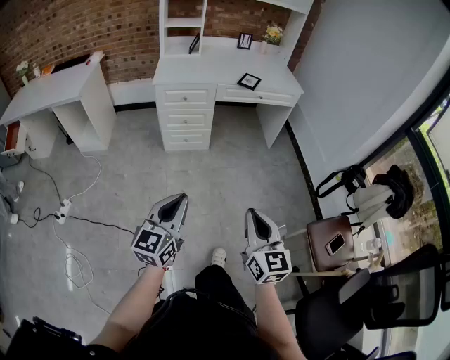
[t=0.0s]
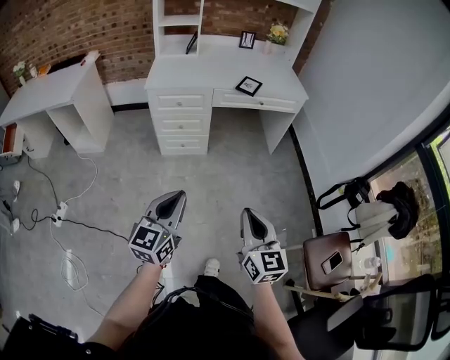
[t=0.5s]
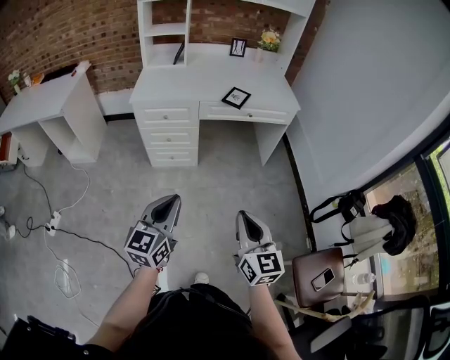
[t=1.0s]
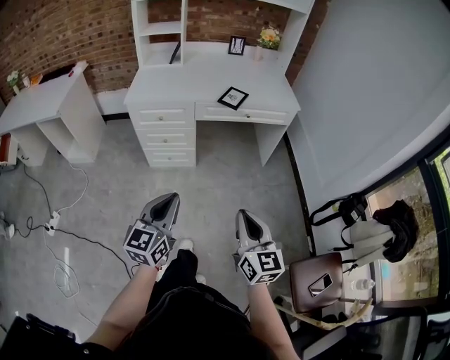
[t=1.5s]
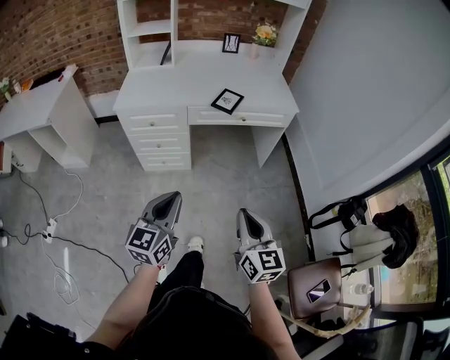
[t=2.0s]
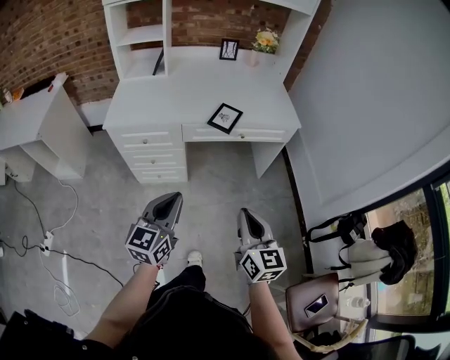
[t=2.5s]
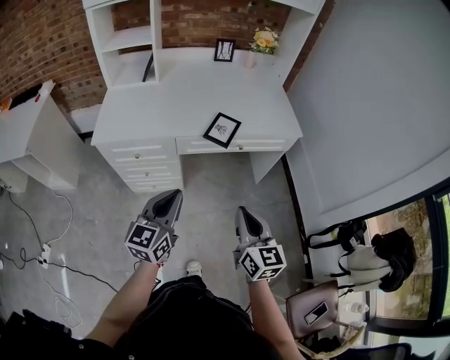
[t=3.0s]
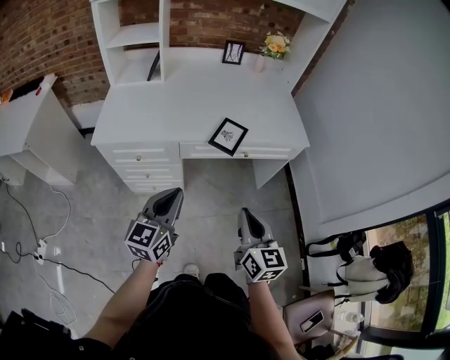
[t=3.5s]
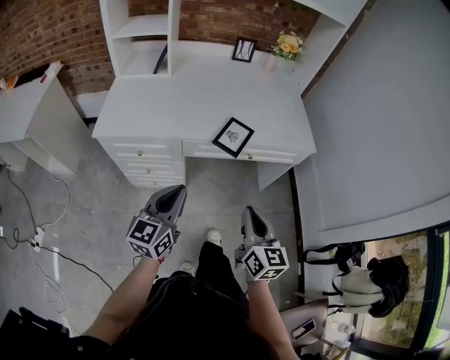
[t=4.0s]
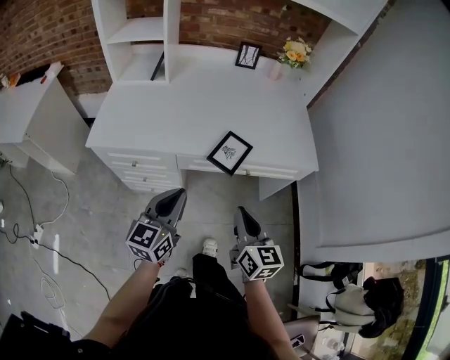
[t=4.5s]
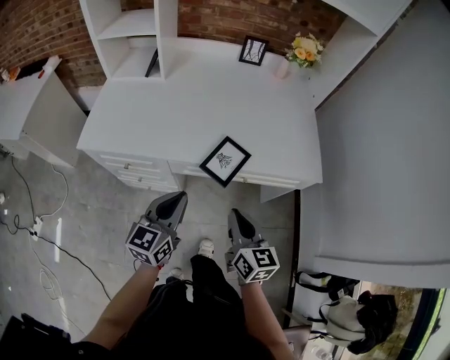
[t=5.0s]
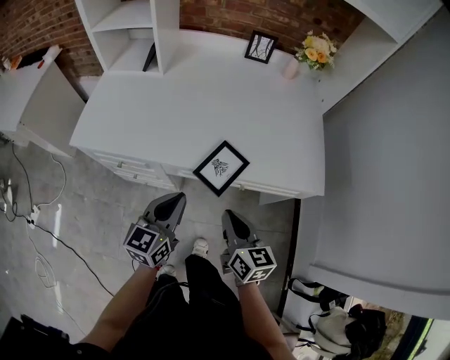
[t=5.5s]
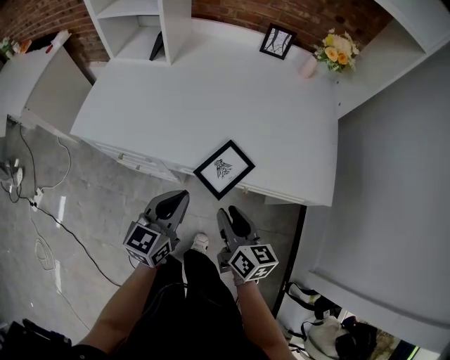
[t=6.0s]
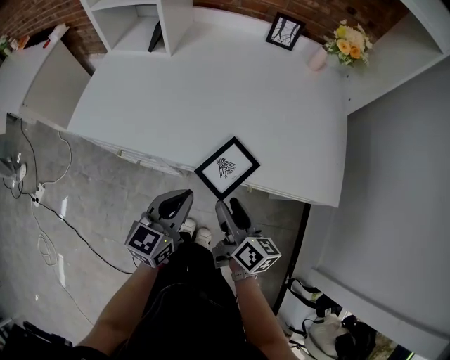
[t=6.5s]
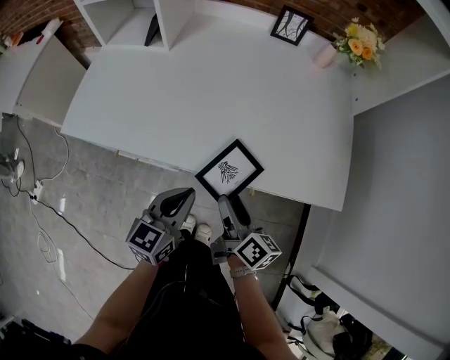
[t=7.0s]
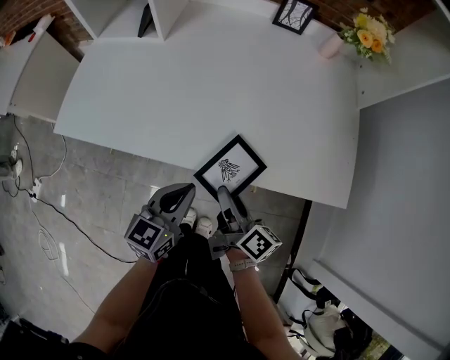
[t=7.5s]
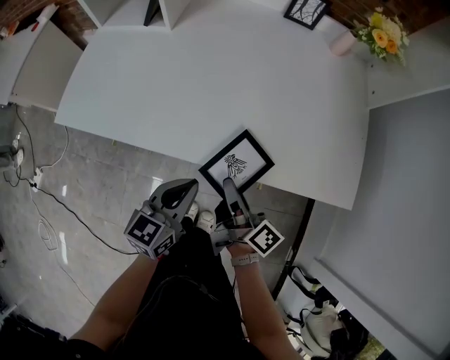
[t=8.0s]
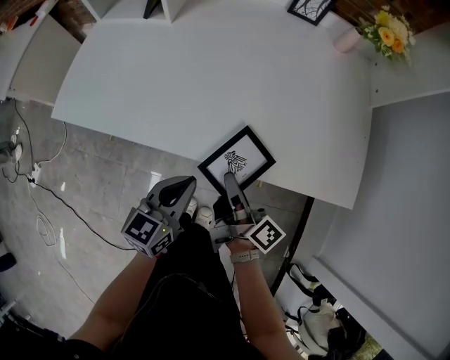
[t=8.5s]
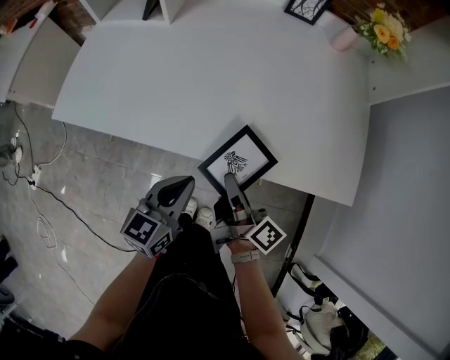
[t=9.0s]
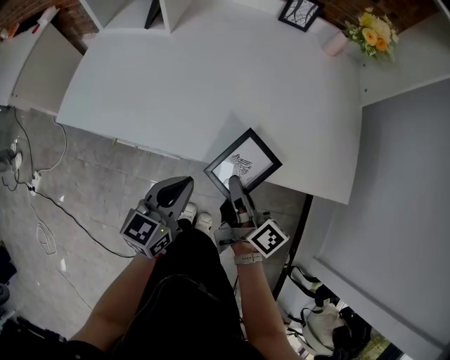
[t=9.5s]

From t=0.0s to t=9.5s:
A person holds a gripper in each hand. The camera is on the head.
From t=0.0s to t=2.0s: Both grippers move forward and to the right, roughly 30 cm.
From t=2.0s to t=4.0s: The two grippers go approximately 25 cm forward.
From t=4.0s to t=5.5s: The right gripper is displaced forward by about 15 cm, and rotates some 20 degrees, while the left gripper travels forward and to the right by some 15 cm.
From t=5.5s to t=7.5s: The right gripper is displaced forward and downward by about 10 cm, twists approximately 40 degrees clockwise, seen from behind, and opens up. Meanwhile the left gripper shifts roughly 10 cm downward and forward.
From t=7.5s to t=9.5s: The right gripper closes up.

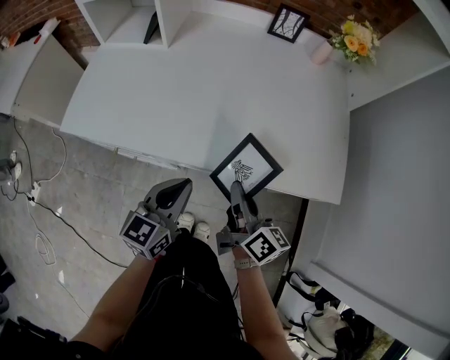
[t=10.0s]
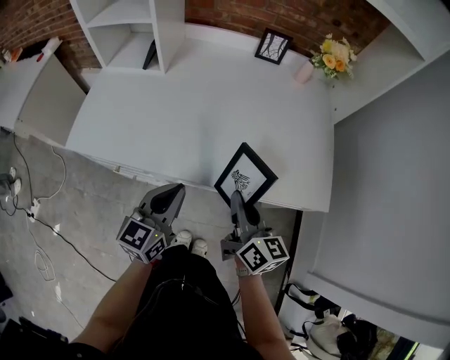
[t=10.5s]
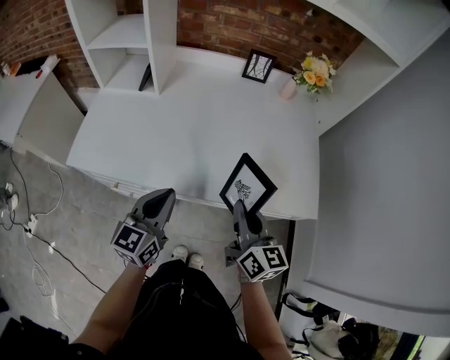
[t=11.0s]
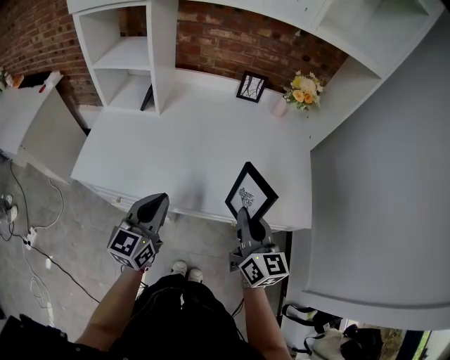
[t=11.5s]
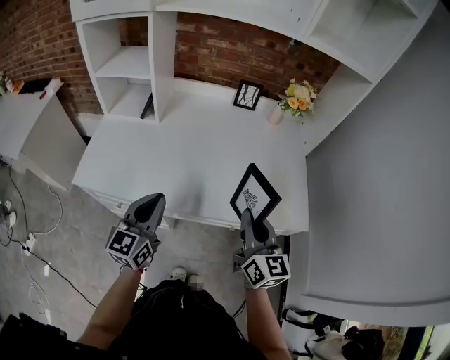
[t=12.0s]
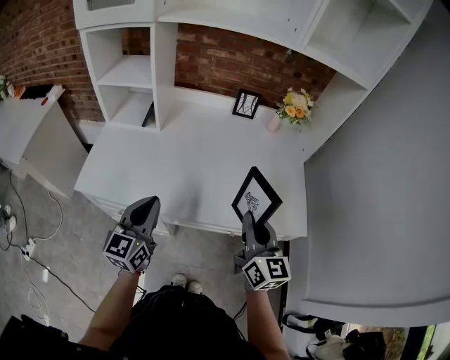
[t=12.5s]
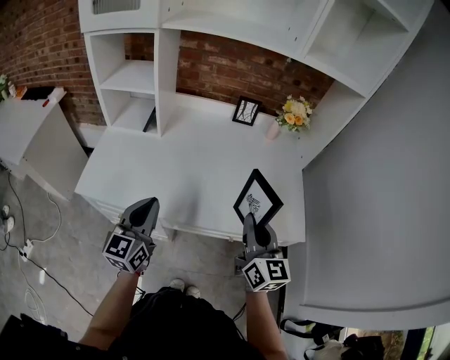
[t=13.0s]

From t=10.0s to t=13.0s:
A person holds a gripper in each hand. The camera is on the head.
From t=10.0s to t=11.5s: The right gripper travels upward by about 10 cm, and swivels some 30 degrees; the left gripper shifts roughly 10 cm upward and to the left.
From t=11.5s to t=13.0s: The left gripper shifts by some 5 cm.

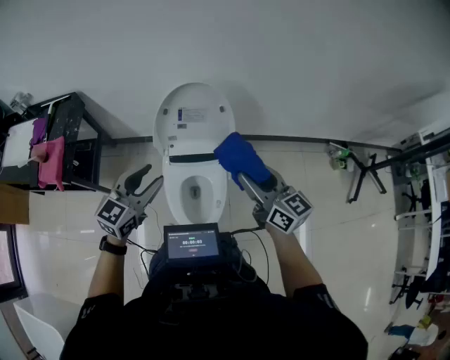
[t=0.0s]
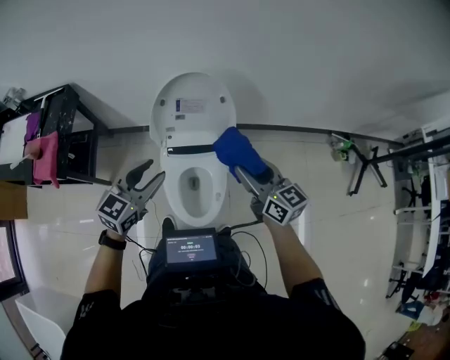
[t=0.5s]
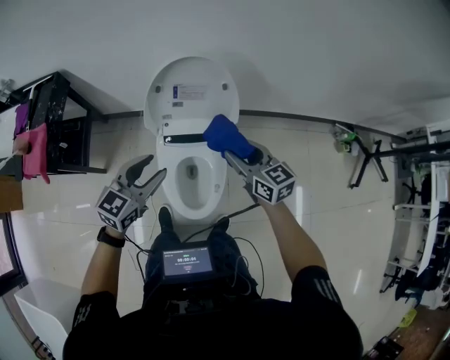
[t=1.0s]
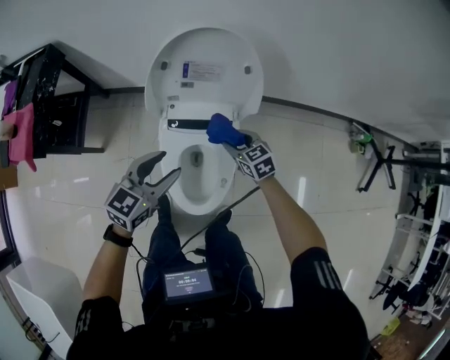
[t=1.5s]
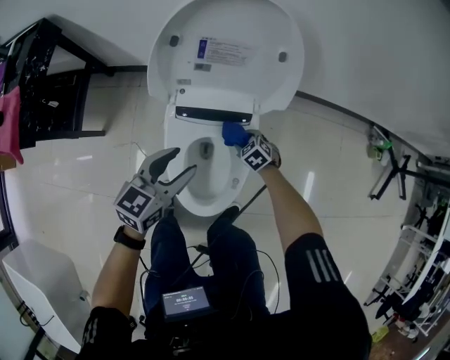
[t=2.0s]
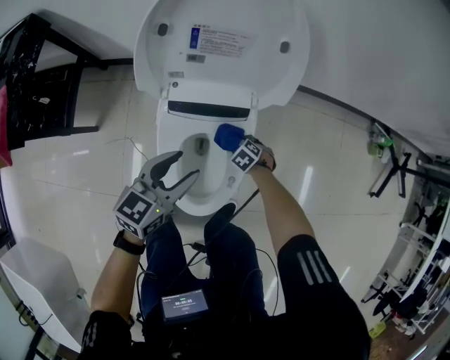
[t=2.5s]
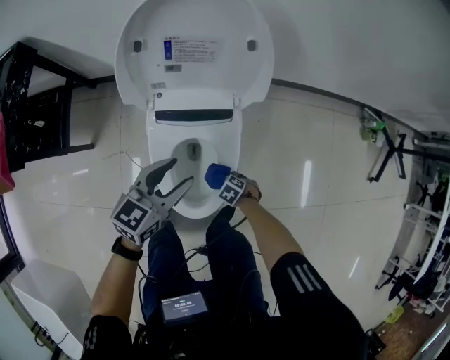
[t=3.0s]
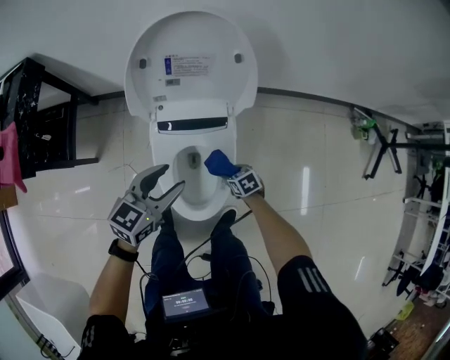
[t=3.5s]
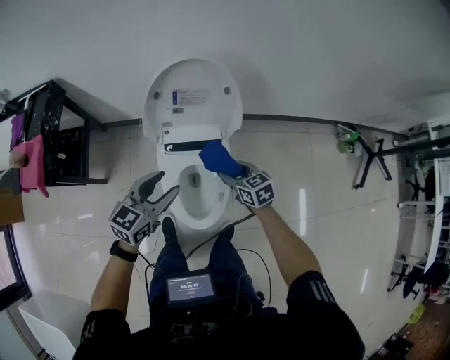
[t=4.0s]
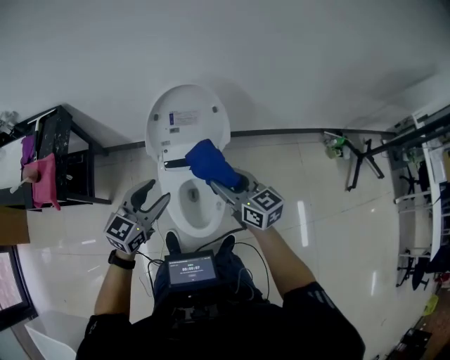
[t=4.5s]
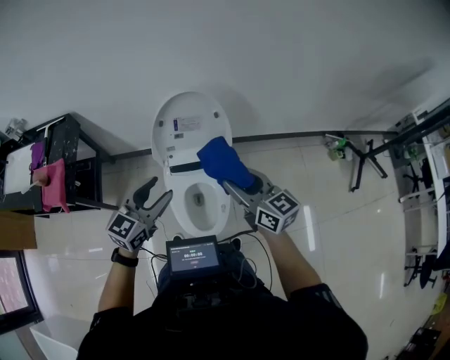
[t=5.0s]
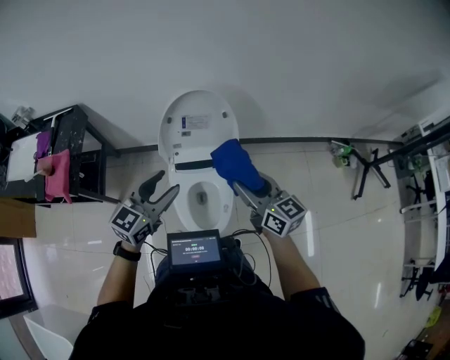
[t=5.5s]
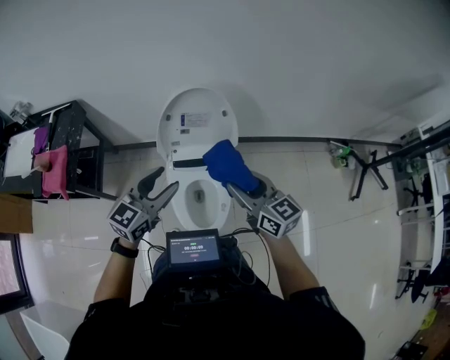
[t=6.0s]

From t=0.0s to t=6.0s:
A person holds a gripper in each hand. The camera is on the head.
From t=0.0s to t=2.0s: The right gripper heads downward, covering approximately 60 cm, and angles its fingers downward, by approximately 60 degrees; the left gripper shifts some 30 cm downward, and turns by roughly 20 degrees.
From t=2.0s to t=4.0s: The left gripper goes approximately 15 cm upward. Meanwhile the right gripper moves upward, some 30 cm, and turns by approximately 40 degrees.
From t=4.0s to t=6.0s: The left gripper moves upward, approximately 15 cm, while the right gripper travels upward by approximately 30 cm, and changes its angle by roughly 30 degrees.

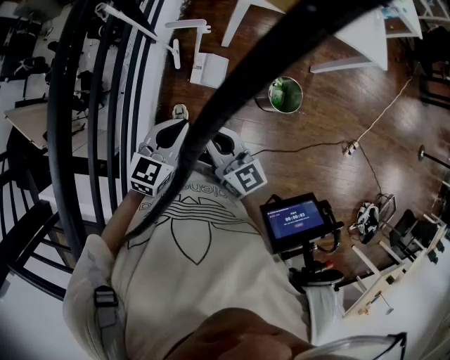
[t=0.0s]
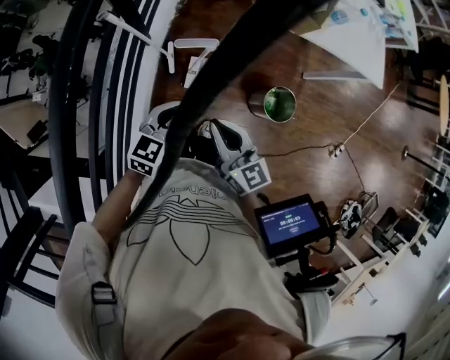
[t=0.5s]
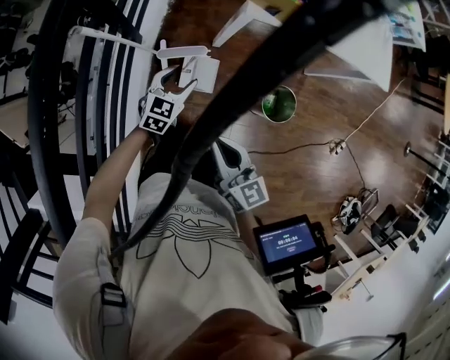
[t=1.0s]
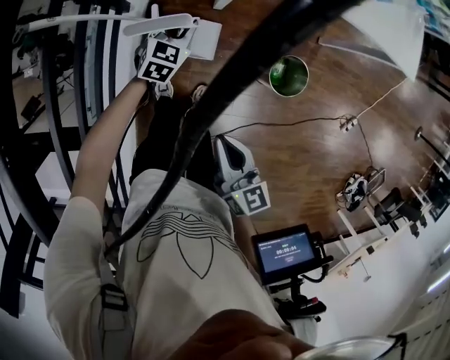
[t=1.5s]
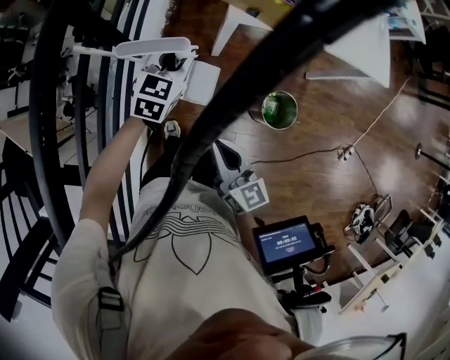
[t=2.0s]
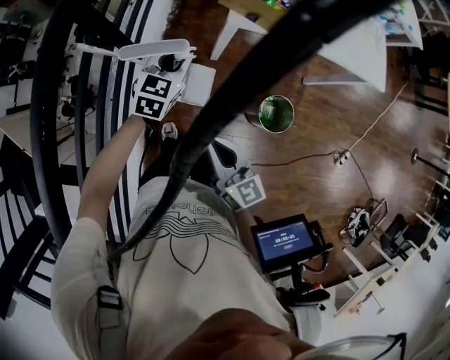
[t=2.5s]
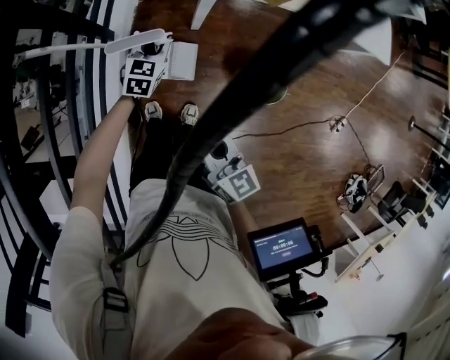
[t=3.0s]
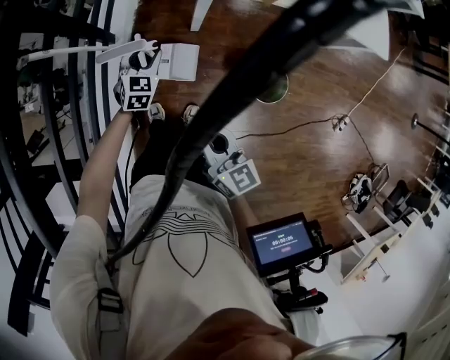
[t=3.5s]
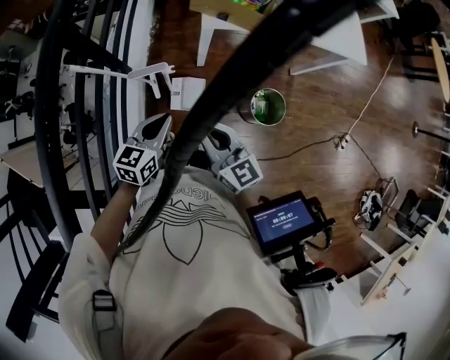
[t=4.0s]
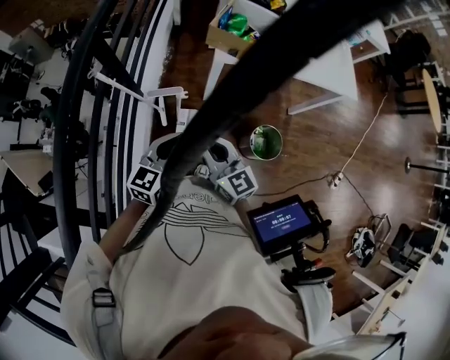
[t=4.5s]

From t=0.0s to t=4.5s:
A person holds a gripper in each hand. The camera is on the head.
From t=0.0s to t=2.0s: The left gripper heads forward, covering roughly 20 cm, and opens and closes again.
From t=2.0s to t=4.5s: The left gripper shifts roughly 20 cm backward, goes downward and returns, some 15 cm each way, changes its angle by roughly 20 degrees, and opens and closes again, while the right gripper changes place by some 5 cm.

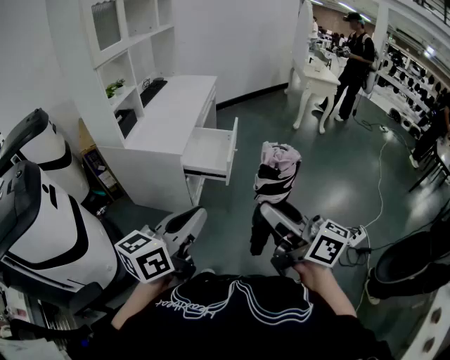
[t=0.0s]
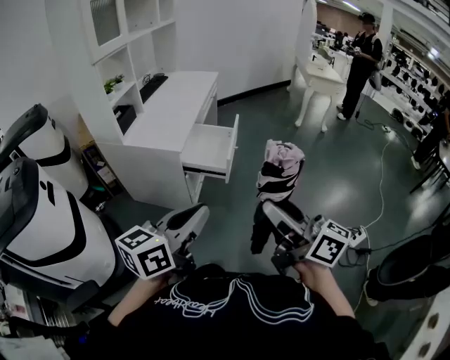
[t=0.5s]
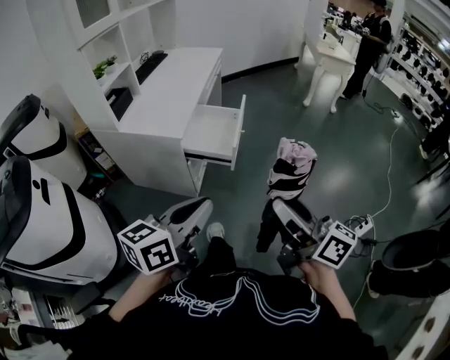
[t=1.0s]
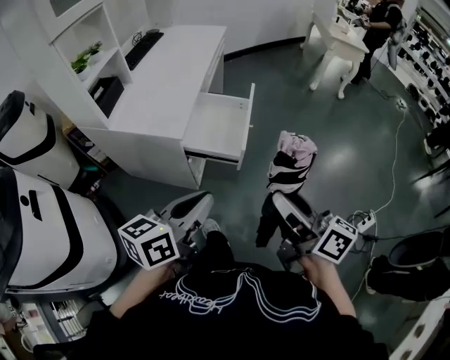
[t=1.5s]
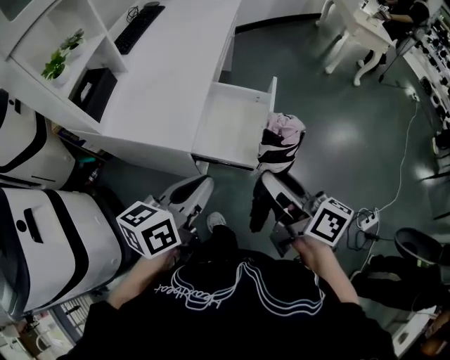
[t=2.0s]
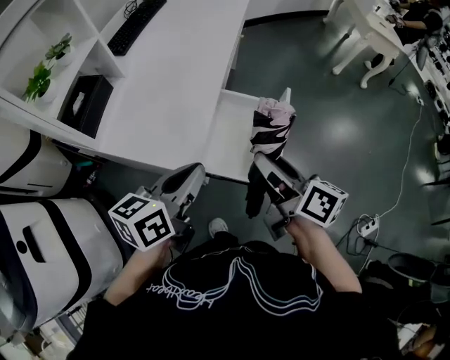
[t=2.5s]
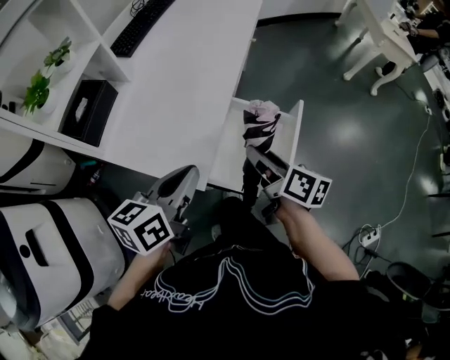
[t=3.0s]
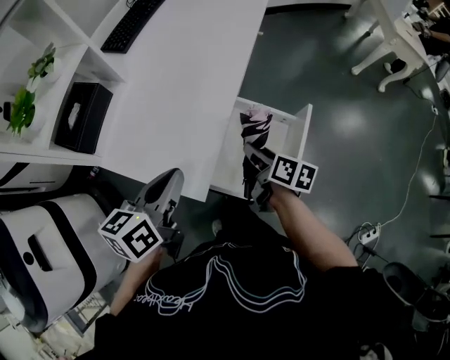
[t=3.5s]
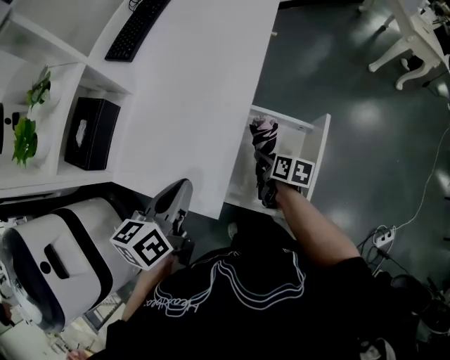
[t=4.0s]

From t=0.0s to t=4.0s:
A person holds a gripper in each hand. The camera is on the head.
From t=0.0s to t=2.0s: The grippers both shift forward and downward by about 35 cm. The right gripper swivels some 30 degrees.
From t=2.0s to t=4.0s: The right gripper goes roughly 40 cm downward and forward, and tilts its fingers roughly 40 degrees downward. The left gripper goes roughly 25 cm forward and to the left, and swivels roughly 20 degrees.
